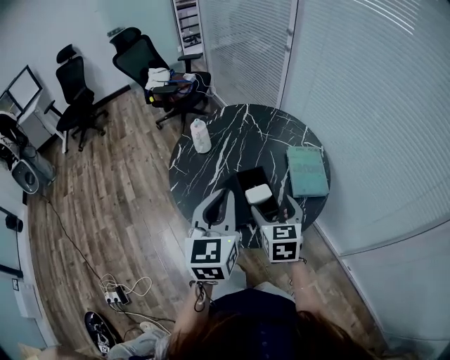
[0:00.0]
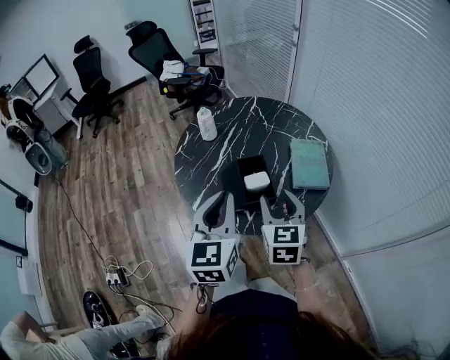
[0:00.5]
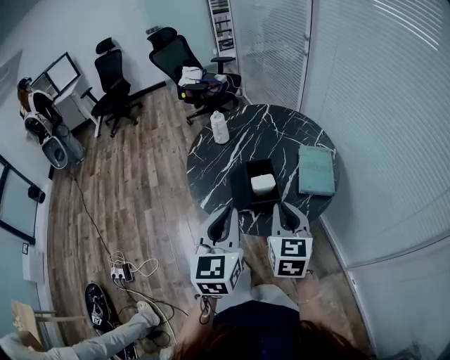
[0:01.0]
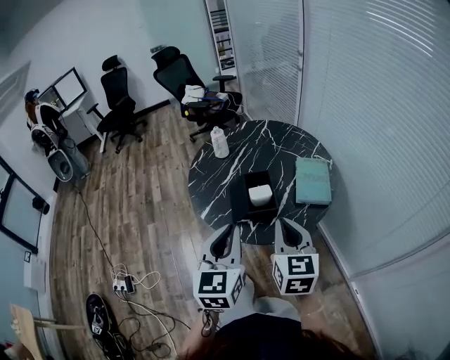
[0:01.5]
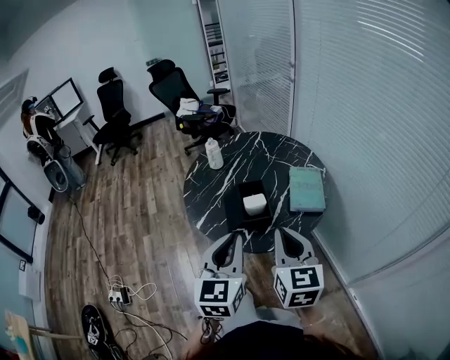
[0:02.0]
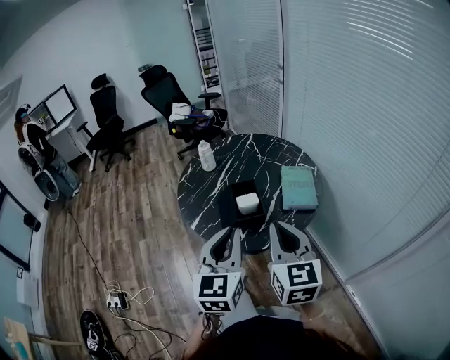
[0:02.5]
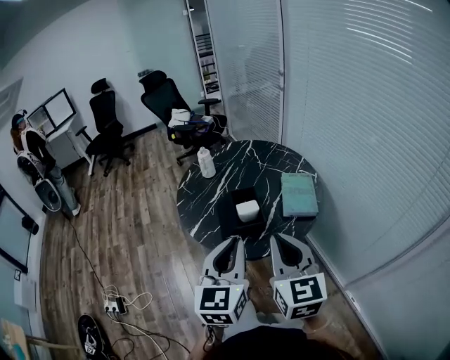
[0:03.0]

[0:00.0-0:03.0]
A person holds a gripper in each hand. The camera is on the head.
0:00.0 to 0:01.5: The right gripper is displaced backward and upward by some 15 cm, and closes up. The left gripper heads backward, covering approximately 15 cm.
0:01.5 to 0:03.0: The right gripper moves upward and backward, some 10 cm. The left gripper shifts by some 5 cm.

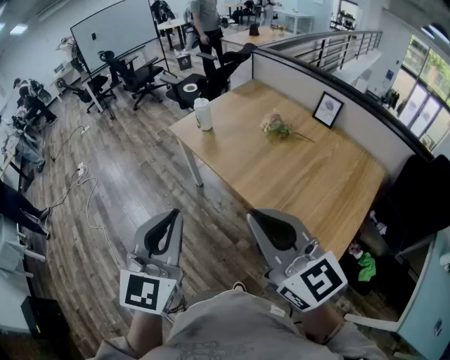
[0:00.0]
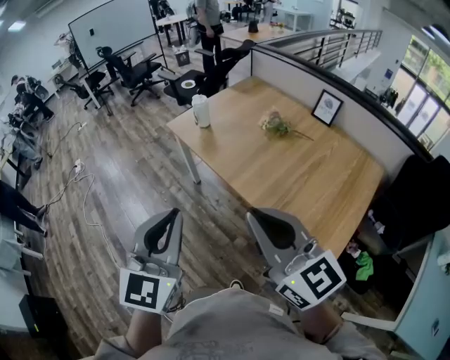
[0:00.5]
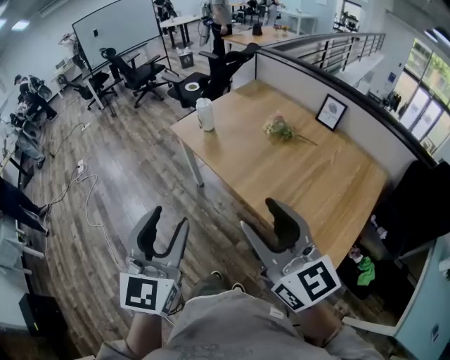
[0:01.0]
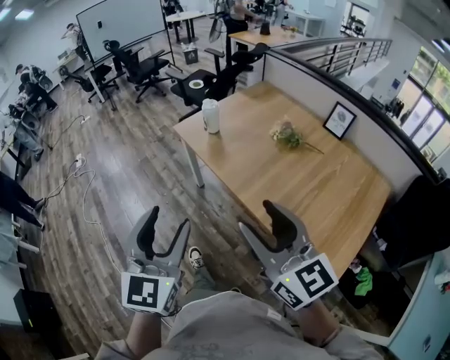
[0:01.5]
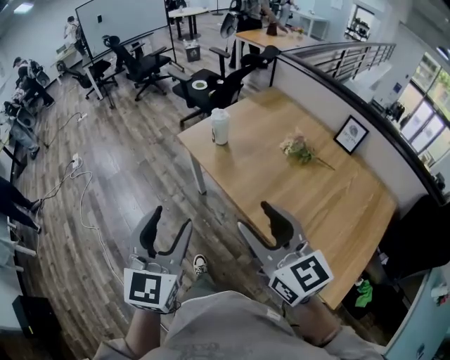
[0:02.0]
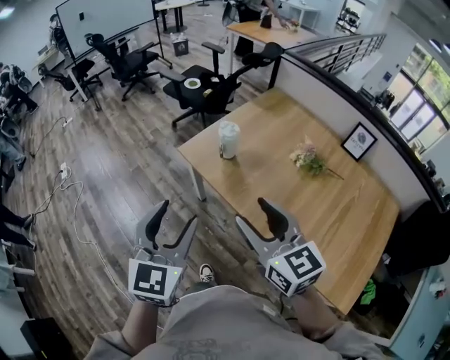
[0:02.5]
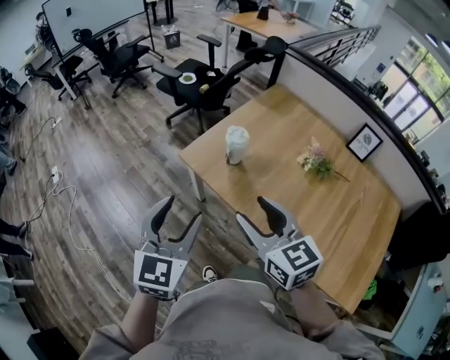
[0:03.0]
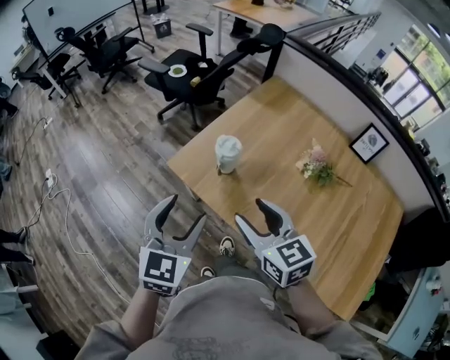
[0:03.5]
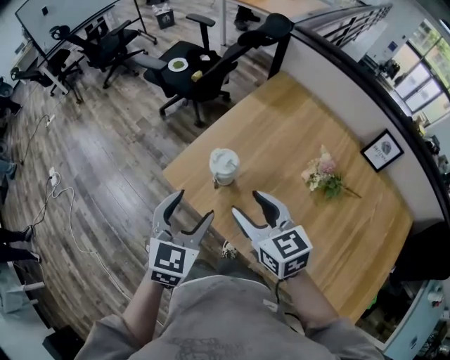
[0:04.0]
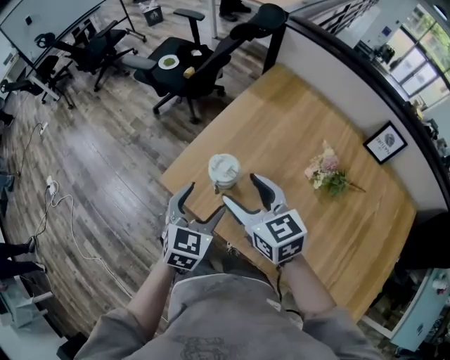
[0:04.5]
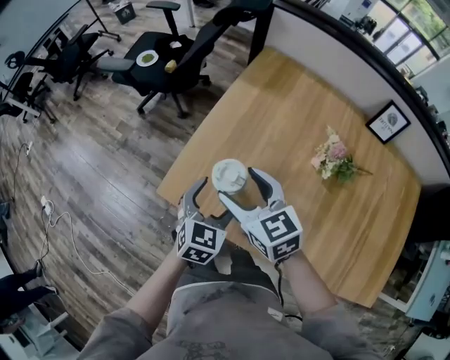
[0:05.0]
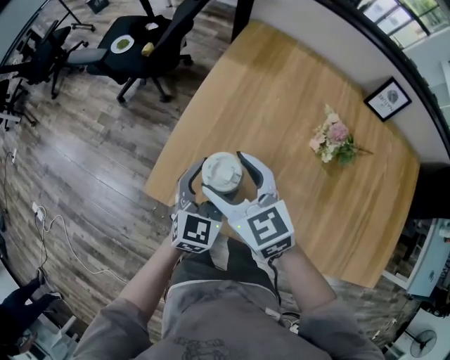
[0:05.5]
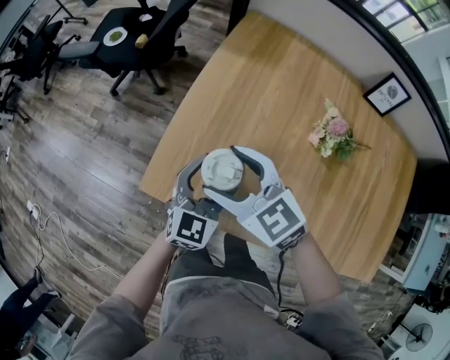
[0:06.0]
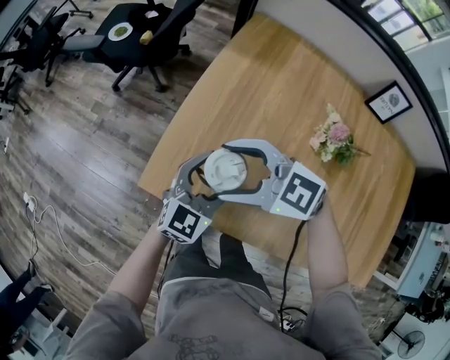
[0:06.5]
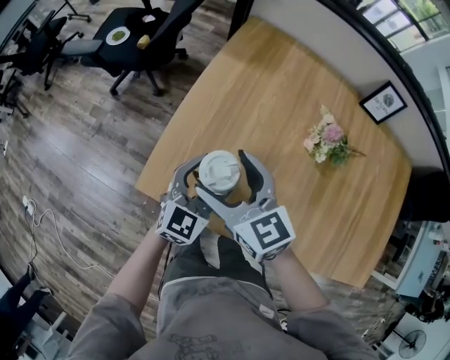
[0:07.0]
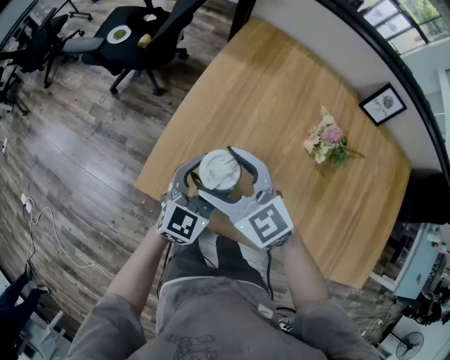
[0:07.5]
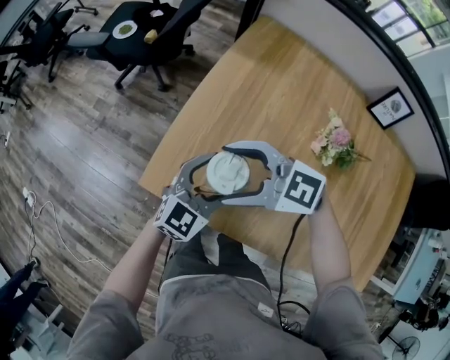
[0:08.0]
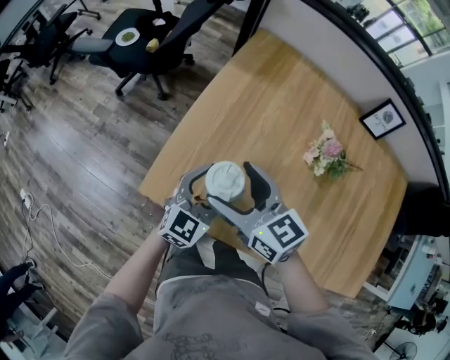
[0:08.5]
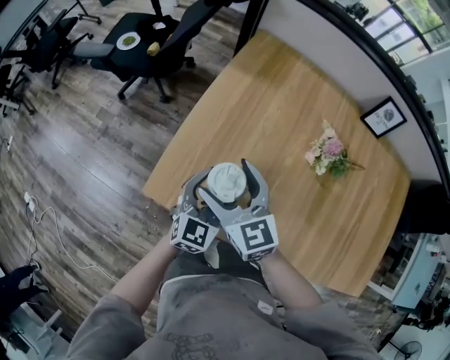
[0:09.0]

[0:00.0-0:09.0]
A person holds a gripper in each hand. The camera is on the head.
0:00.0 to 0:02.0: The right gripper moves forward, approximately 20 cm, and opens up. The left gripper goes approximately 20 cm forward and to the left, and opens its fingers.
0:02.0 to 0:04.5: The pair of grippers is taken forward, some 50 cm. The right gripper rotates about 20 degrees. The left gripper travels downward by approximately 25 cm, and turns by some 30 degrees.
0:04.5 to 0:07.0: The right gripper heads forward and downward, covering approximately 10 cm. The left gripper shifts roughly 10 cm downward and forward, and turns by some 30 degrees.

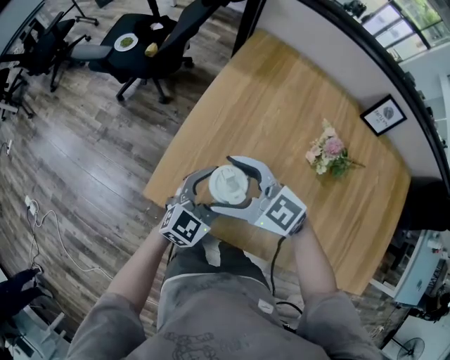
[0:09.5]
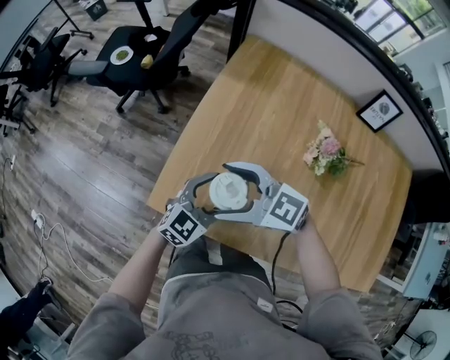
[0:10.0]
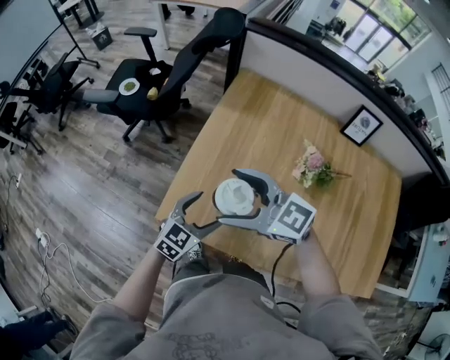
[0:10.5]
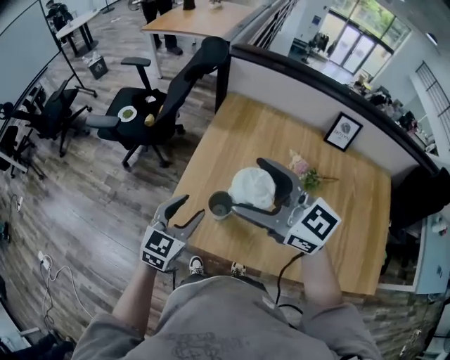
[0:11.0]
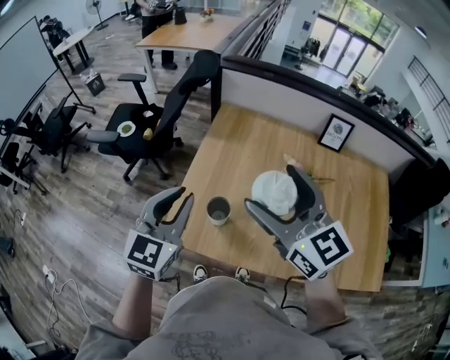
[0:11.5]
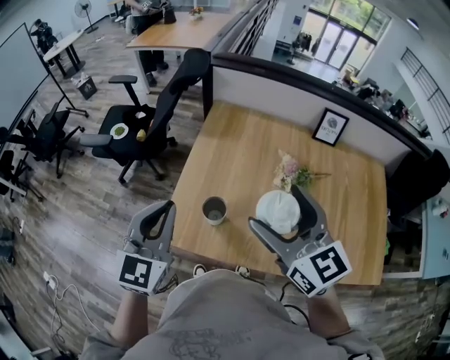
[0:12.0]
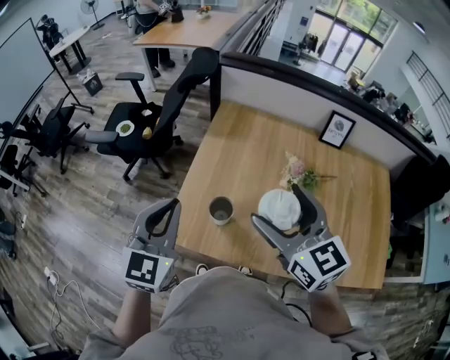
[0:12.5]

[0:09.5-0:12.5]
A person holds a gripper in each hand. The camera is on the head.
0:09.5 to 0:11.0: The right gripper is displaced upward by roughly 25 cm, and changes its angle by about 30 degrees. The left gripper heads upward, covering approximately 15 cm.
0:11.0 to 0:12.5: The left gripper shifts about 15 cm upward, and closes its fingers, while the right gripper heads to the right, covering about 5 cm, and swivels about 30 degrees.

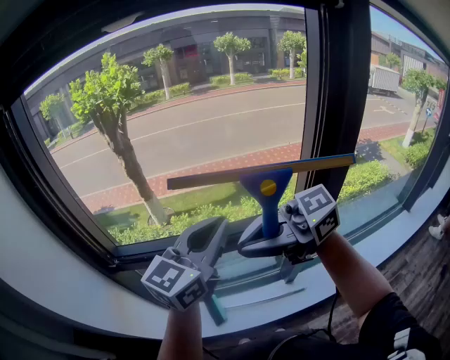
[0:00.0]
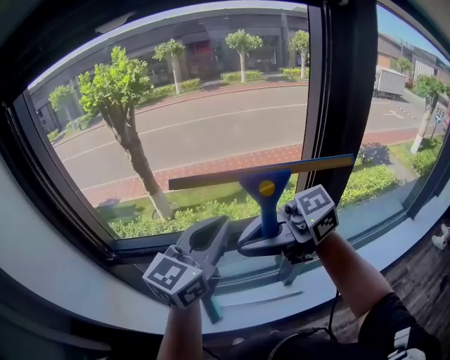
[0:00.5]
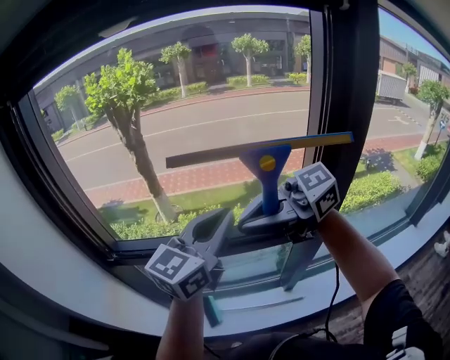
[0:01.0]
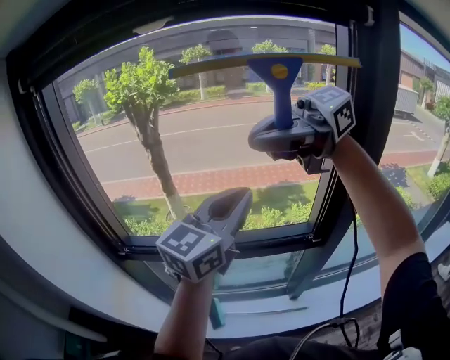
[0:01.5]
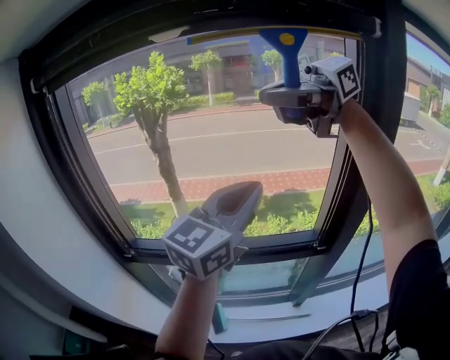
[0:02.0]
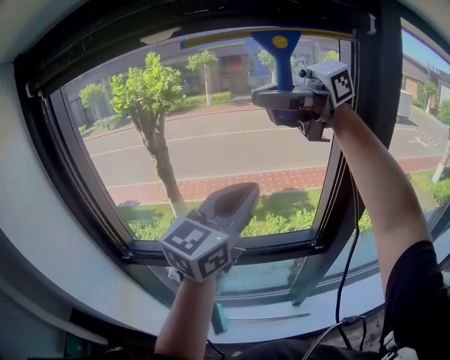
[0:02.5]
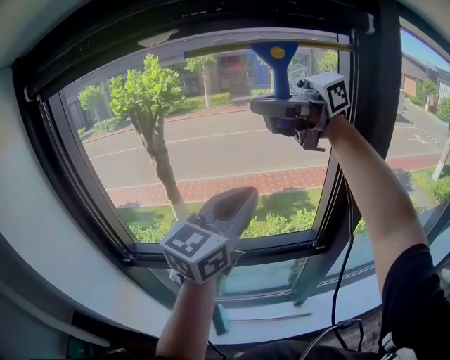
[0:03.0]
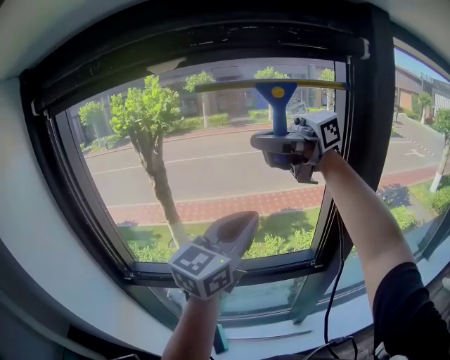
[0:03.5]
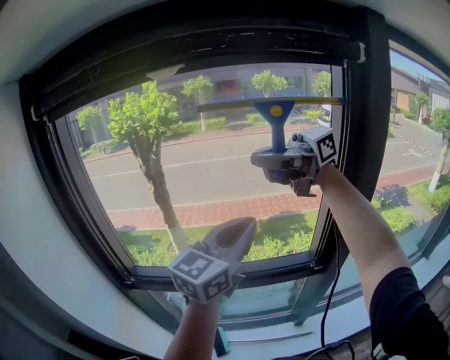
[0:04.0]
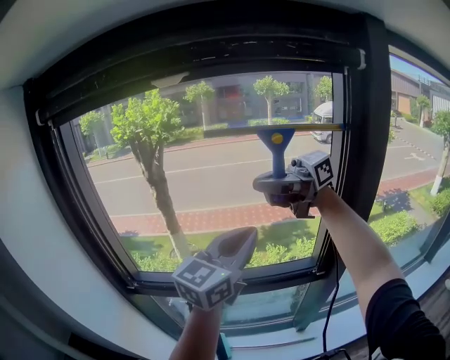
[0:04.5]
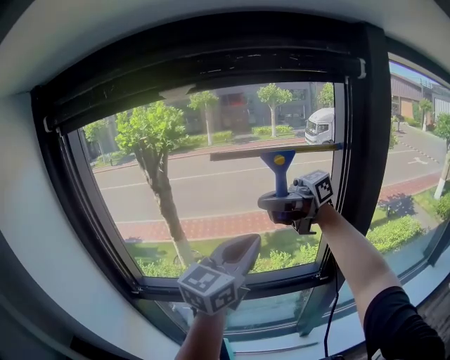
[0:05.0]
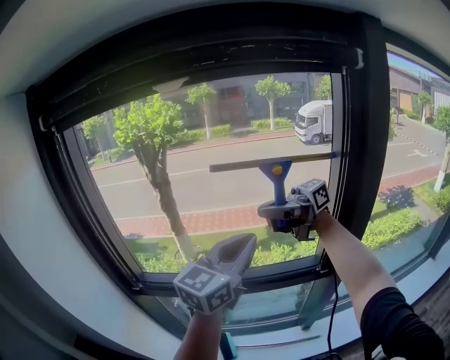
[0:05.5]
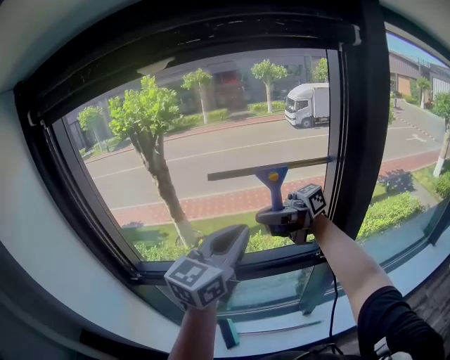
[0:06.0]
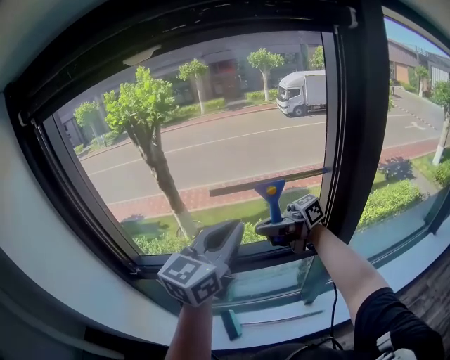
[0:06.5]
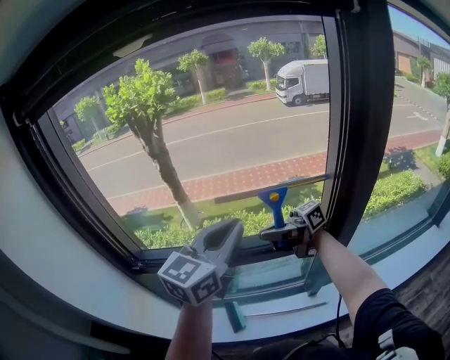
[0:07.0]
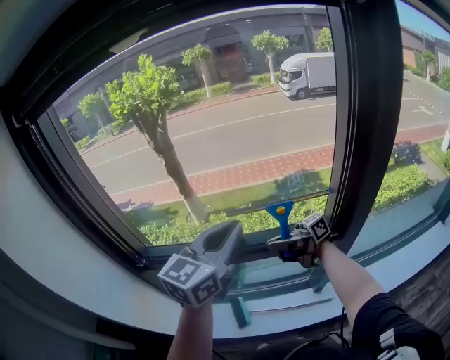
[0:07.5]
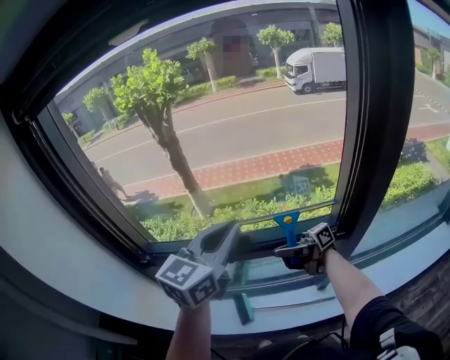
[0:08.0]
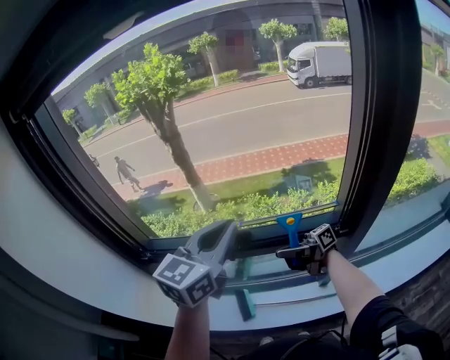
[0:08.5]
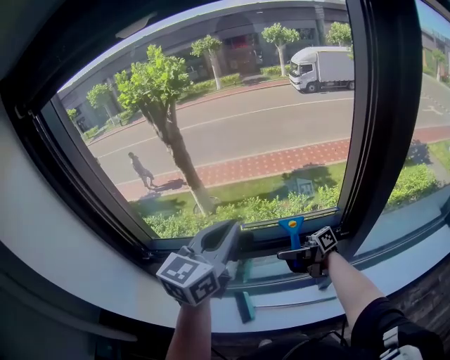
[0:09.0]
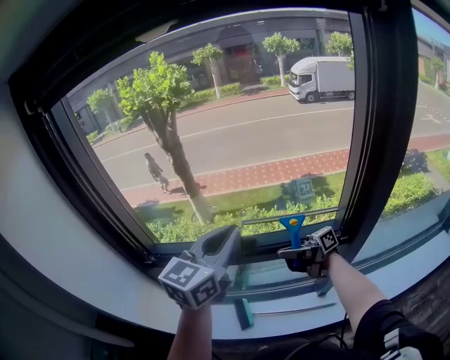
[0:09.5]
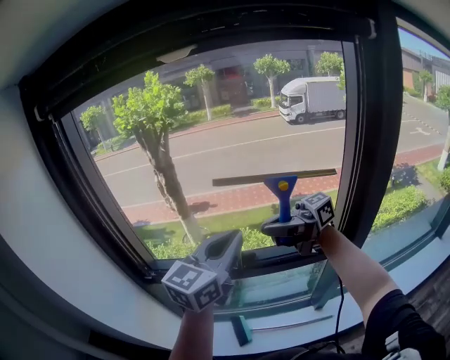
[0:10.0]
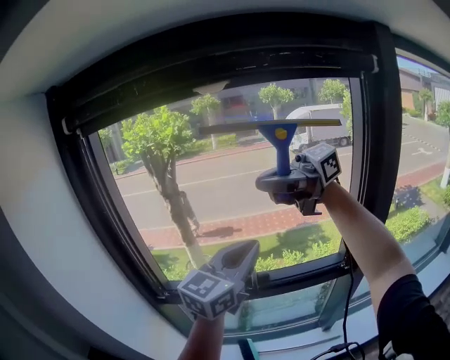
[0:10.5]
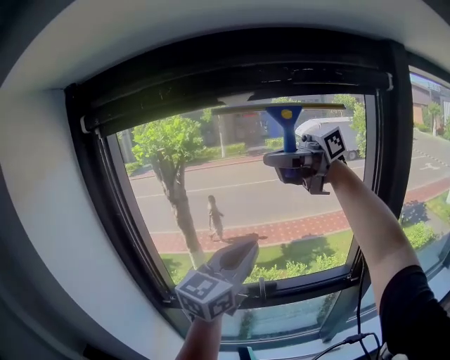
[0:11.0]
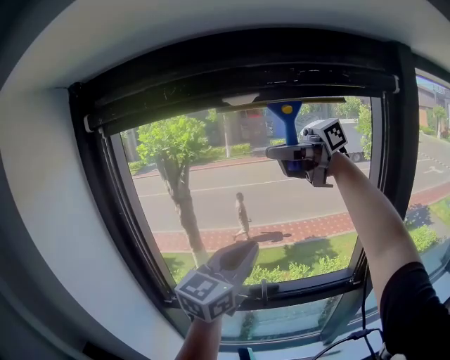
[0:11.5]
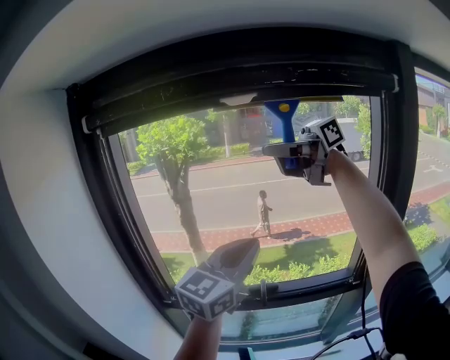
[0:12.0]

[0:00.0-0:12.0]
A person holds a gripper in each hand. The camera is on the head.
0:00.0 to 0:02.0: The right gripper goes about 25 cm upward. Meanwhile the left gripper travels upward by some 10 cm.
0:02.0 to 0:04.0: The right gripper shifts roughly 5 cm downward.
0:04.0 to 0:06.0: The right gripper is displaced downward by some 20 cm.
0:06.0 to 0:08.0: The right gripper travels downward by roughly 25 cm, and changes its angle by some 30 degrees. Meanwhile the left gripper travels downward by about 5 cm.
0:08.0 to 0:10.0: The right gripper shifts approximately 25 cm upward, and changes its angle by some 30 degrees.
0:10.0 to 0:12.0: The right gripper heads upward, covering about 30 cm. Meanwhile the left gripper shifts approximately 5 cm upward.
